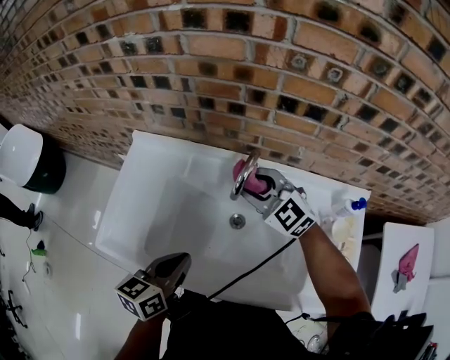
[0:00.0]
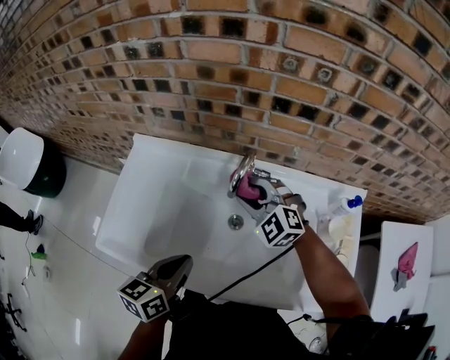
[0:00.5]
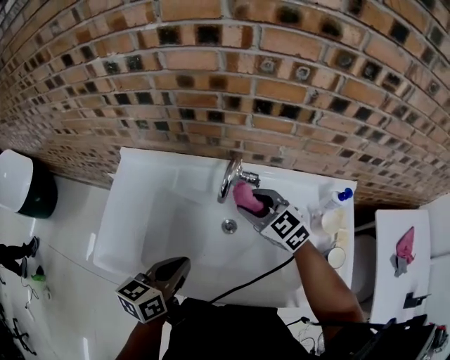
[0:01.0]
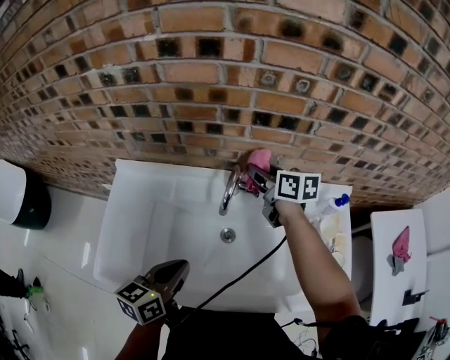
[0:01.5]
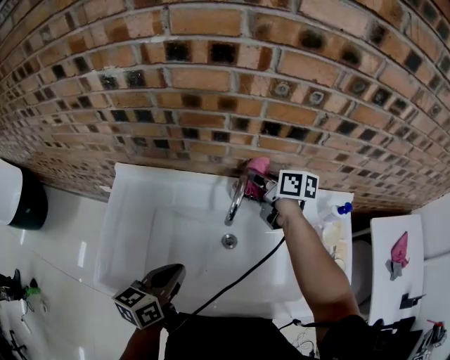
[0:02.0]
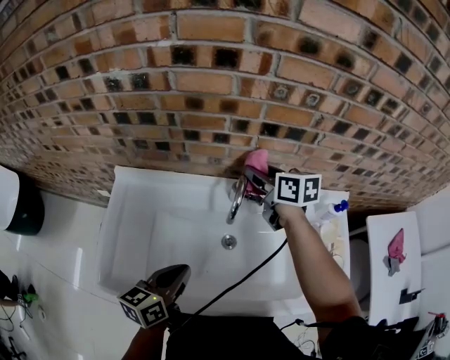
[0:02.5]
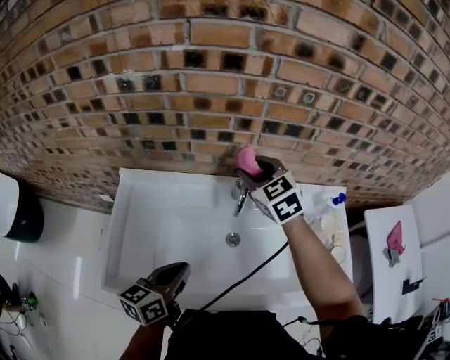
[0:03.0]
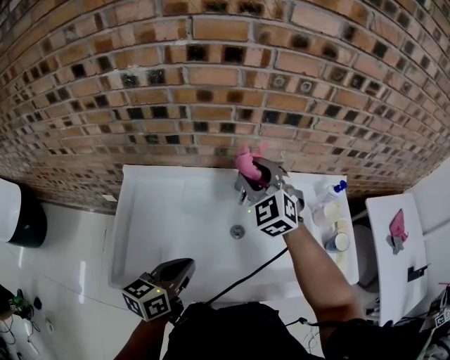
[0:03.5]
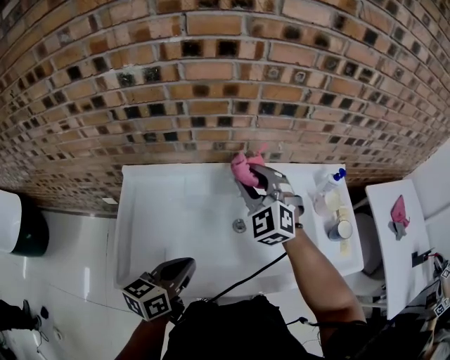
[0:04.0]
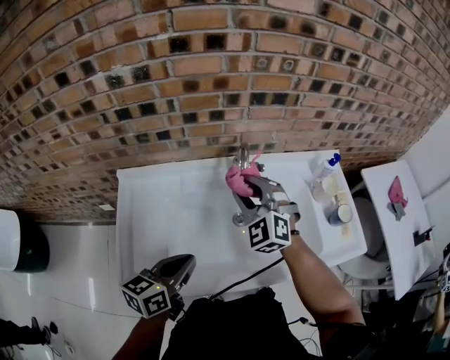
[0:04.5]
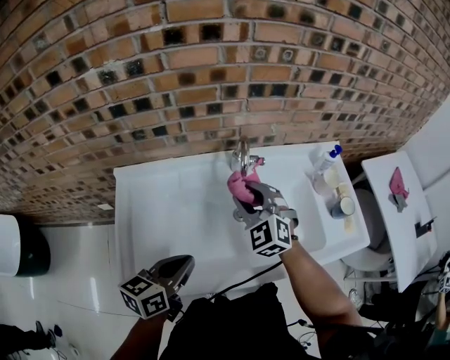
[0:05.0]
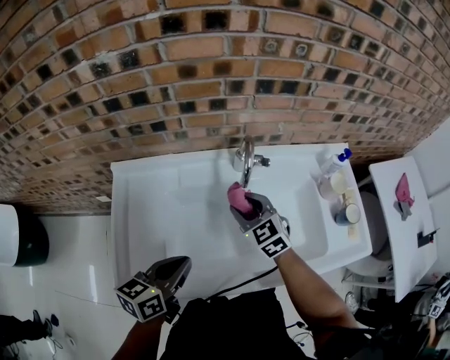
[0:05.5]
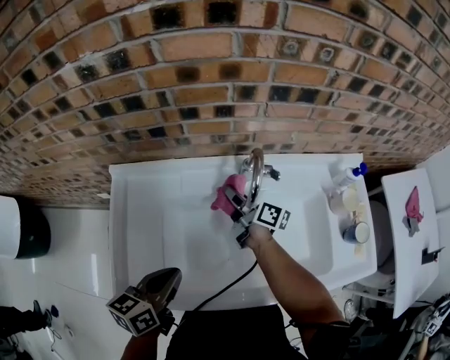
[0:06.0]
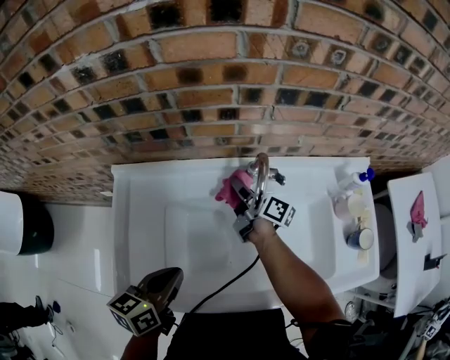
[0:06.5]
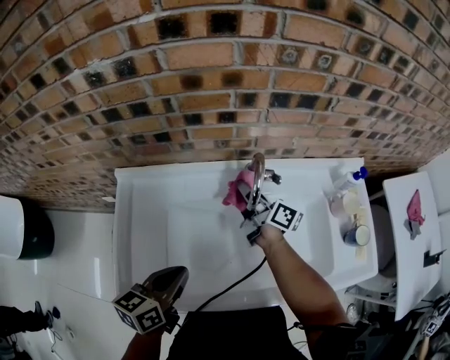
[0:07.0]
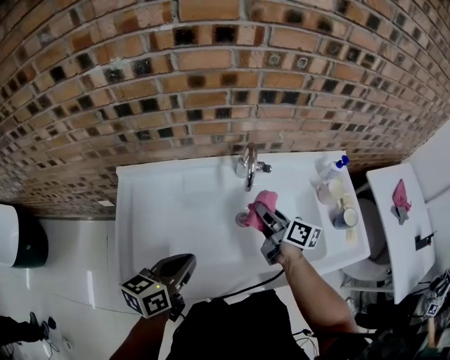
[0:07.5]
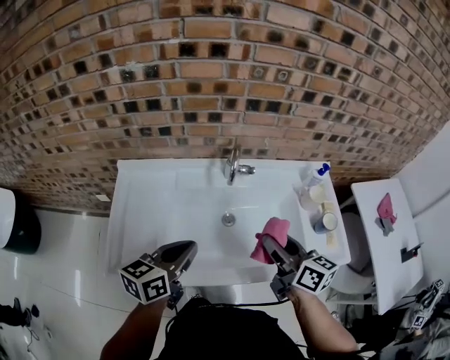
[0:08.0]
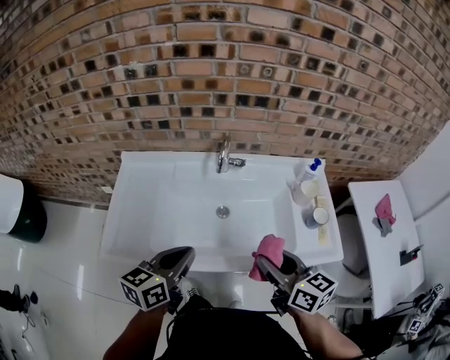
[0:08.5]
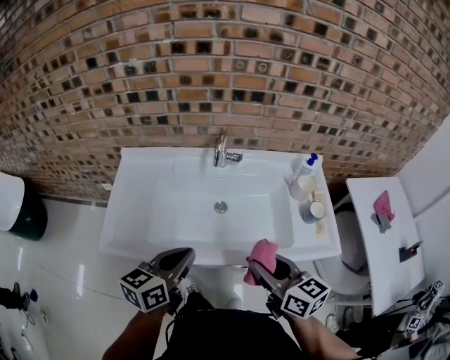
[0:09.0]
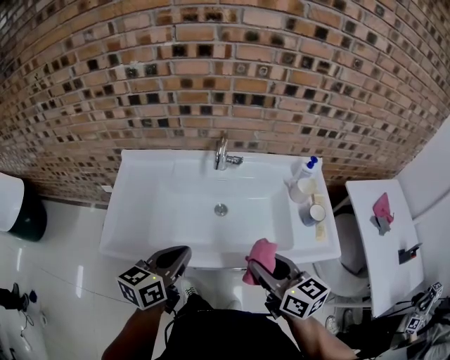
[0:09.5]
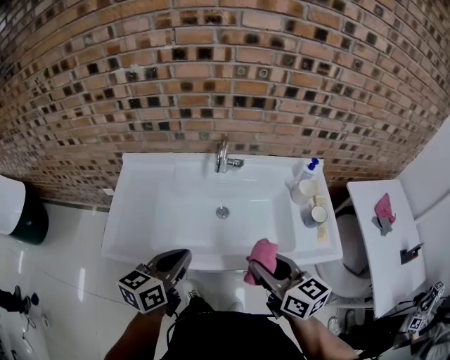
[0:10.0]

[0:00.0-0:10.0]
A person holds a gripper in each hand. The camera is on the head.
0:00.0 to 0:02.0: The left gripper changes place by roughly 5 cm. Meanwhile the right gripper goes approximately 15 cm forward and to the right, and rotates around the line of its fingers by approximately 80 degrees, clockwise from behind.
0:02.0 to 0:04.0: The right gripper moves backward, upward and to the left, approximately 20 cm, and rotates around the line of its fingers by roughly 80 degrees, counterclockwise from behind, while the left gripper is displaced backward by approximately 5 cm.
0:04.0 to 0:06.0: The left gripper shifts by about 5 cm, while the right gripper goes some 20 cm downward, and twists some 110 degrees clockwise, seen from behind.
0:06.0 to 0:08.0: The left gripper shifts about 10 cm to the right and upward; the right gripper travels backward, upward and to the right by about 35 cm, and turns by approximately 30 degrees.
0:08.0 to 0:10.0: Both grippers travel together backward, about 10 cm.

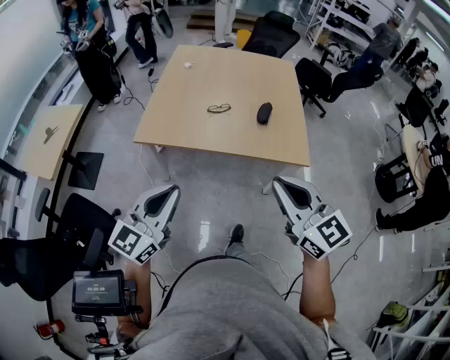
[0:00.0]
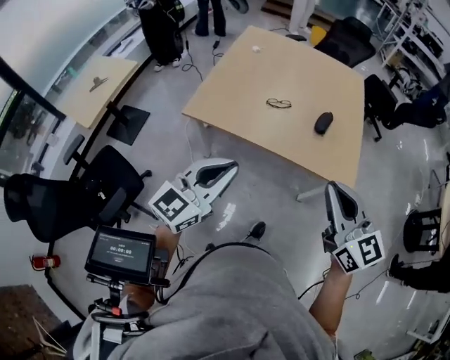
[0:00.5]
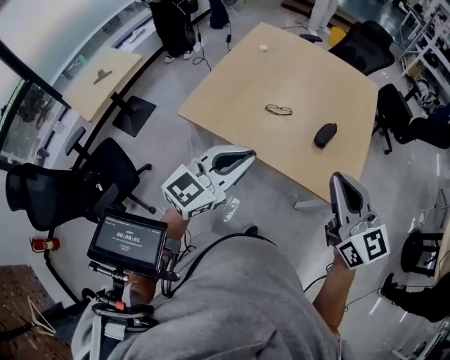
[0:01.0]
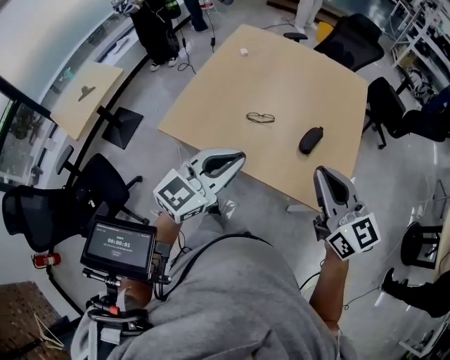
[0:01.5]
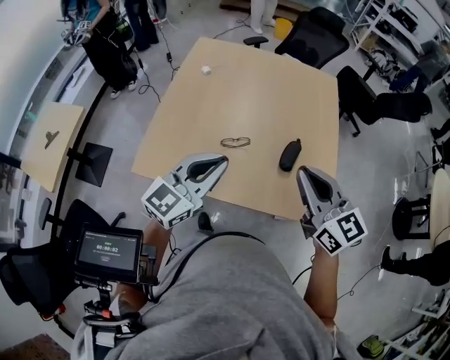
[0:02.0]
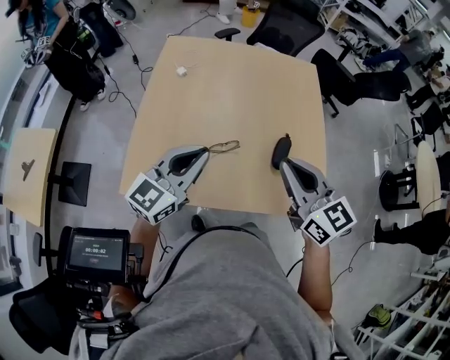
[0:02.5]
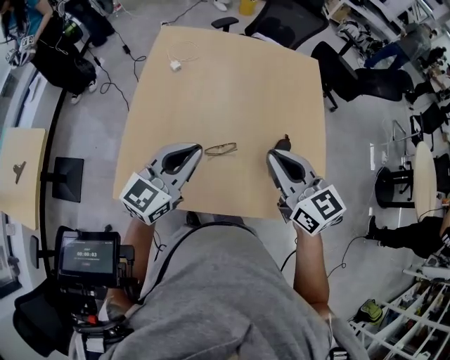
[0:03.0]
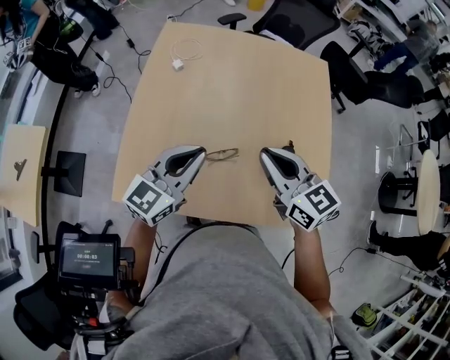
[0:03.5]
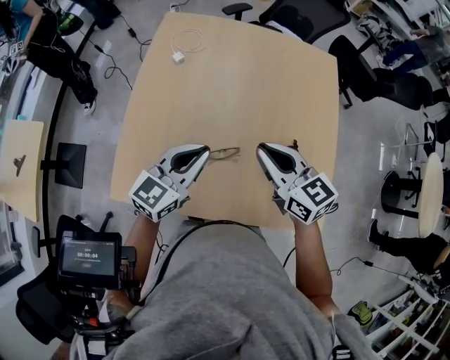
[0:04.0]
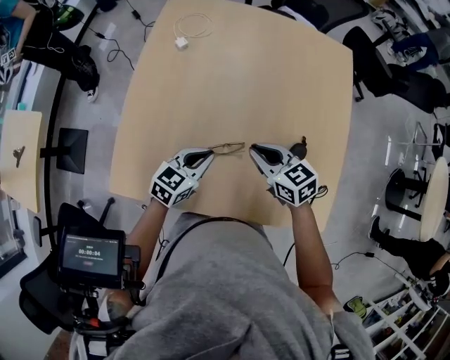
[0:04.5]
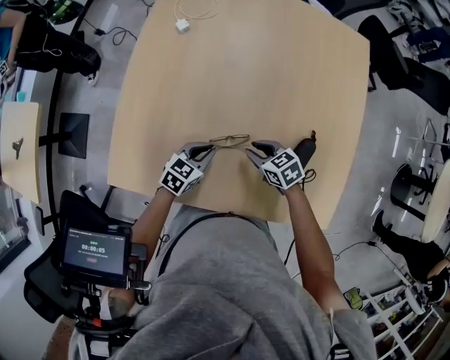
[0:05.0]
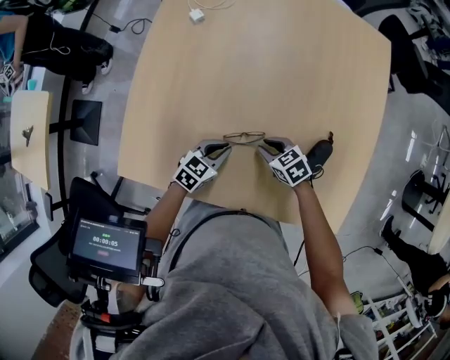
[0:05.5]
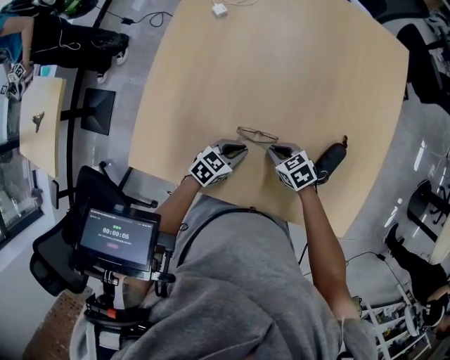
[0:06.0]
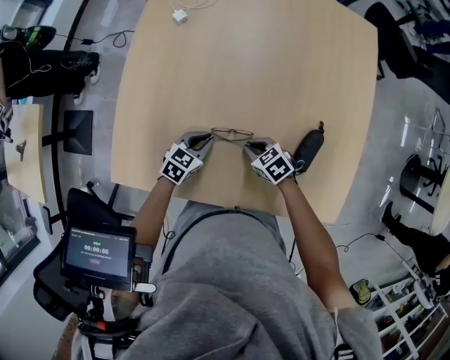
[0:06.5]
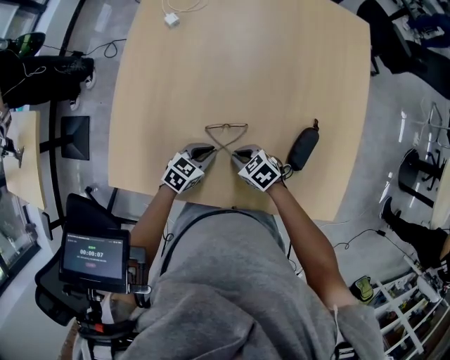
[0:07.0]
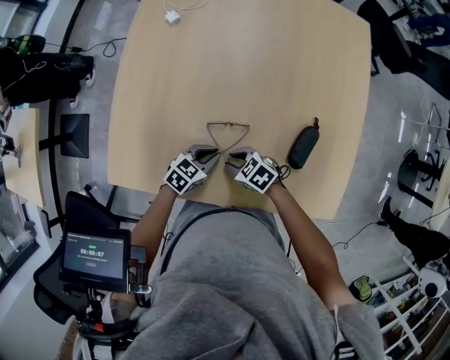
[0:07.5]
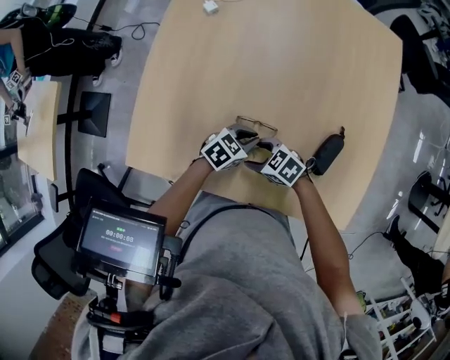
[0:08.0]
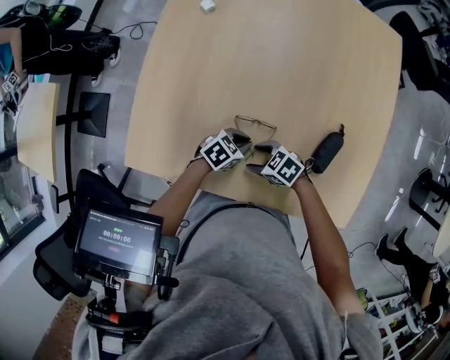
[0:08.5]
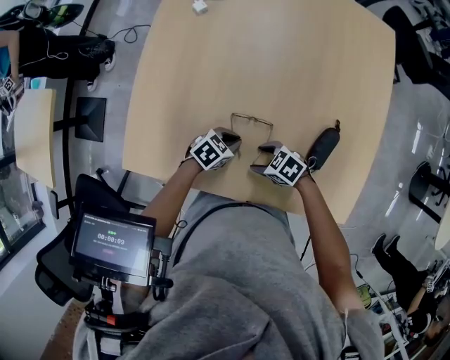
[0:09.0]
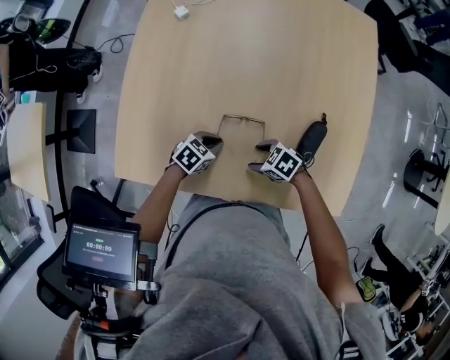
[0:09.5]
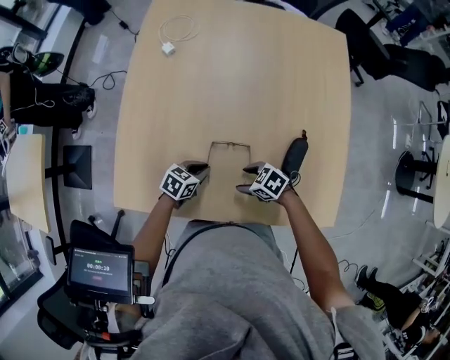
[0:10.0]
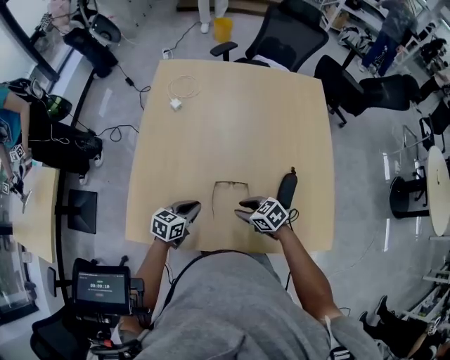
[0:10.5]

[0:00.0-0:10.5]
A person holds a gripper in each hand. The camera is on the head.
0:00.0 to 0:02.0: The pair of grippers is taken forward, some 50 cm.
0:02.0 to 0:04.0: The grippers both shift forward and downward by roughly 25 cm.
0:04.0 to 0:06.5: The grippers both shift downward by some 35 cm. The left gripper angles its fingers downward, by roughly 30 degrees. Meanwhile the right gripper tips its fingers downward by roughly 40 degrees.
0:06.5 to 0:08.5: The left gripper changes place by about 5 cm; the right gripper changes place by some 10 cm, rotates about 20 degrees, and opens up.
0:08.5 to 0:10.5: The two grippers go some 10 cm upward. The right gripper changes its angle by some 30 degrees, and closes, while the left gripper rotates approximately 30 degrees.

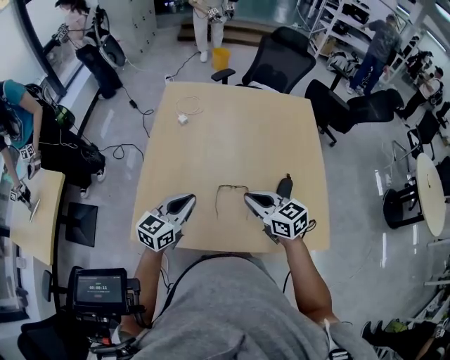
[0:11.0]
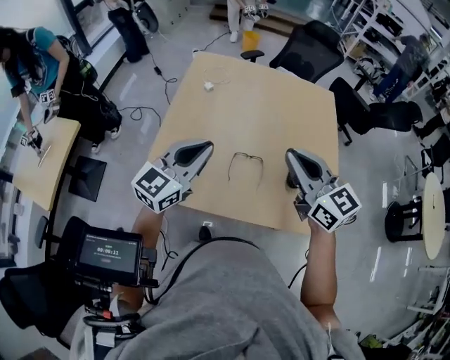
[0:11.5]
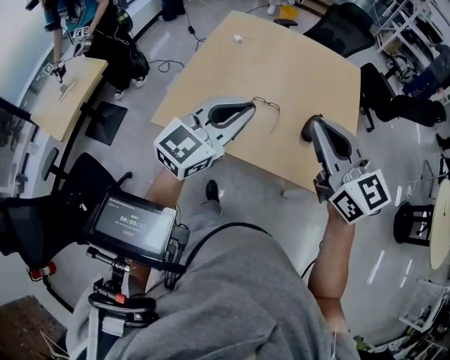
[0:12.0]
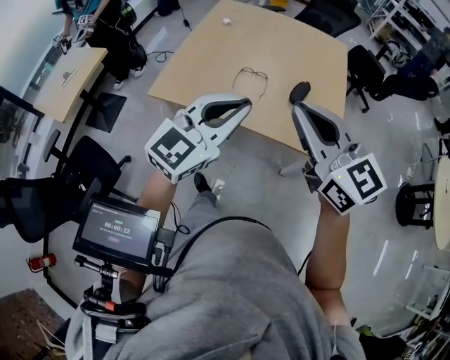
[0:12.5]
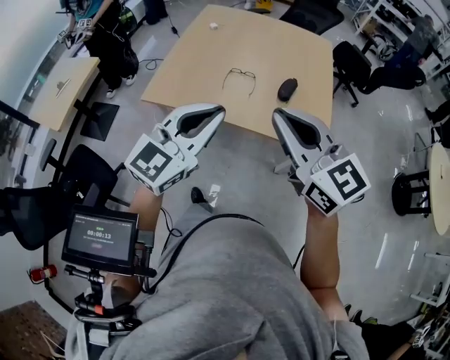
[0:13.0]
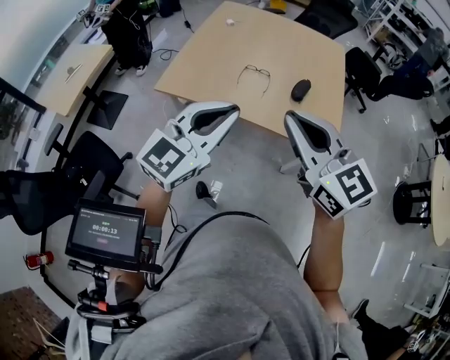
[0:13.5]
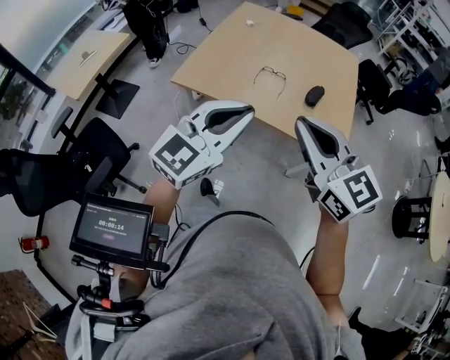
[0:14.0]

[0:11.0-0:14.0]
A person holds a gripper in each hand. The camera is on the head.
0:11.0 to 0:12.5: The two grippers travel together, backward, roughly 40 cm. Both grippers move upward, some 20 cm. The right gripper rotates roughly 30 degrees, while the left gripper rotates roughly 30 degrees.
0:12.5 to 0:14.0: Both grippers move backward and to the left, approximately 10 cm.

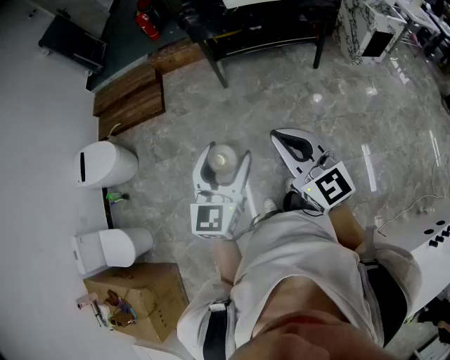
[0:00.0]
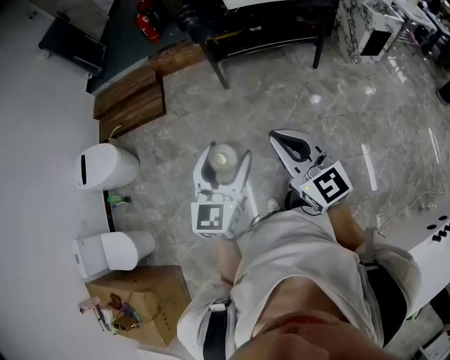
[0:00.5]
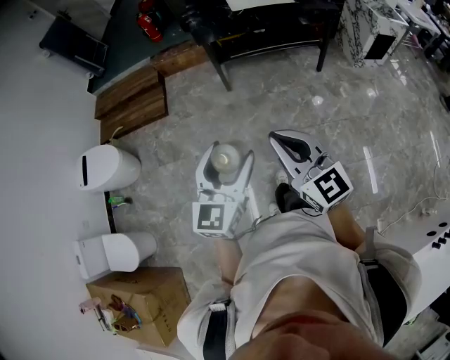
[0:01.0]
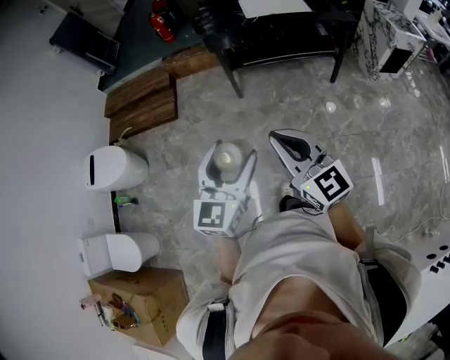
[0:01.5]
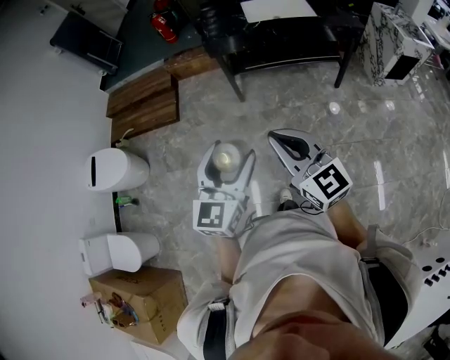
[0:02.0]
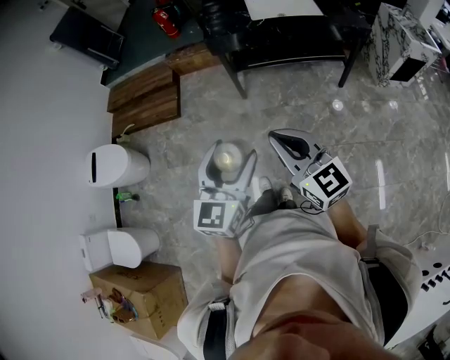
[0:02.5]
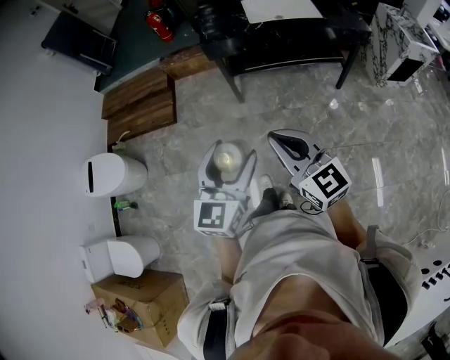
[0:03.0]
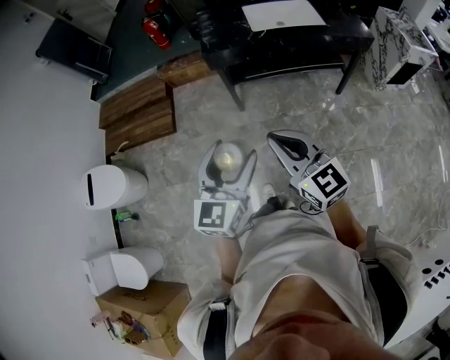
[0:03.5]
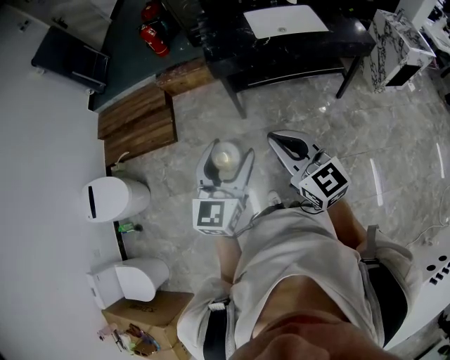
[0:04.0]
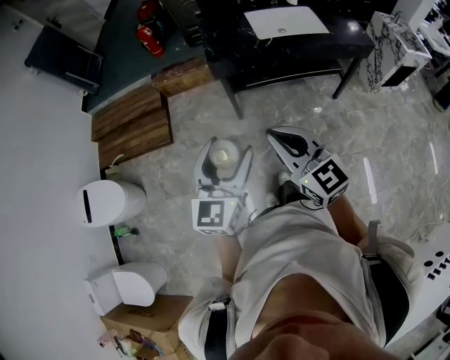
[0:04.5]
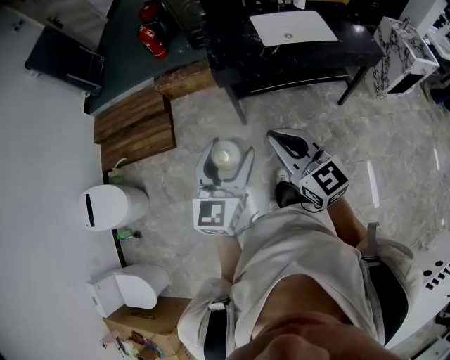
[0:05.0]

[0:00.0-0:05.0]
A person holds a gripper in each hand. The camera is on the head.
0:00.0 to 0:02.5: Both grippers move forward, about 20 cm.
0:02.5 to 0:05.0: Both grippers move forward, some 25 cm.
